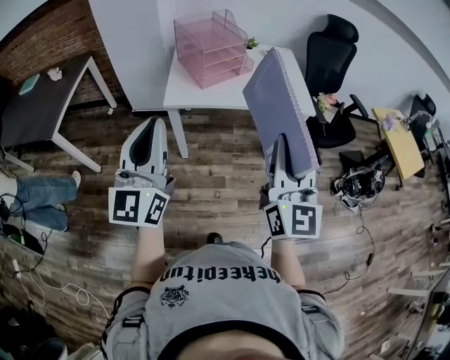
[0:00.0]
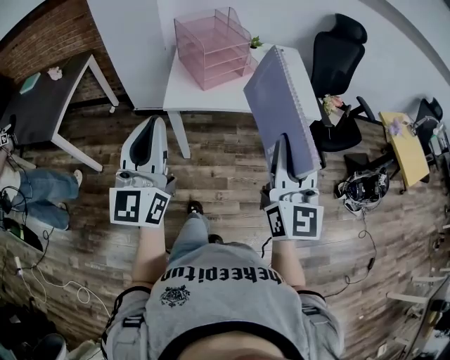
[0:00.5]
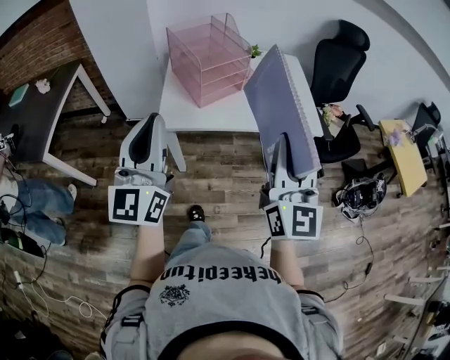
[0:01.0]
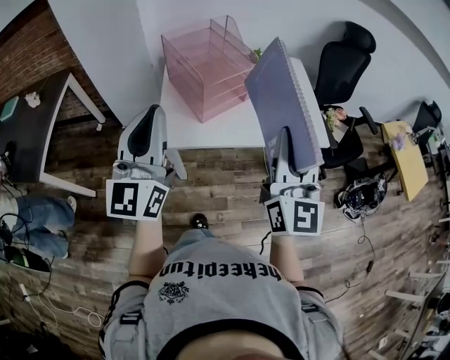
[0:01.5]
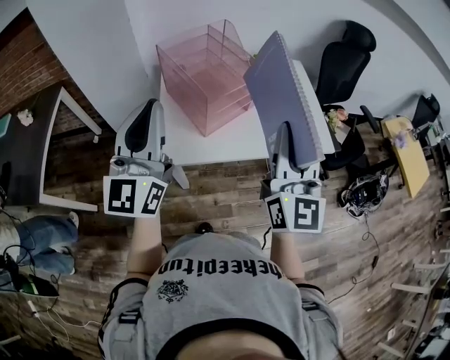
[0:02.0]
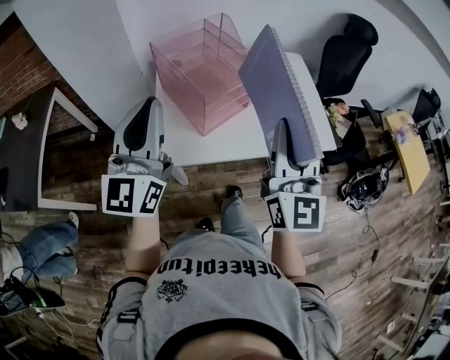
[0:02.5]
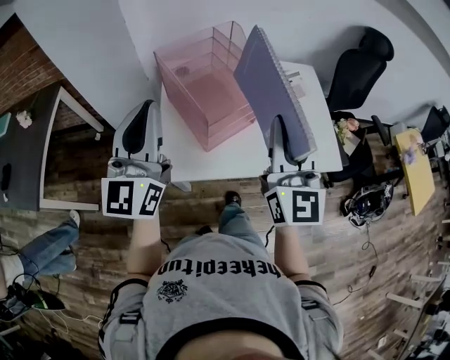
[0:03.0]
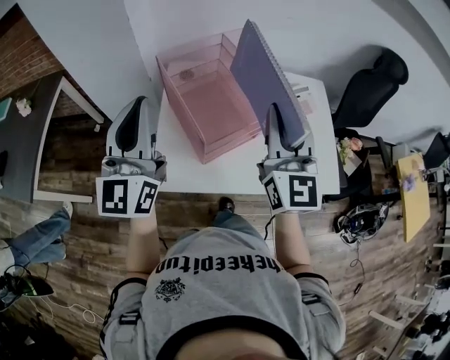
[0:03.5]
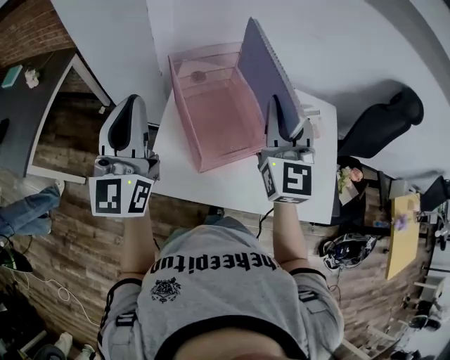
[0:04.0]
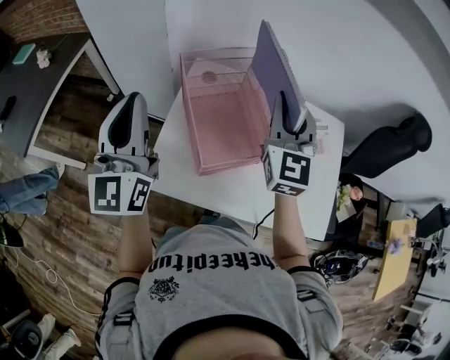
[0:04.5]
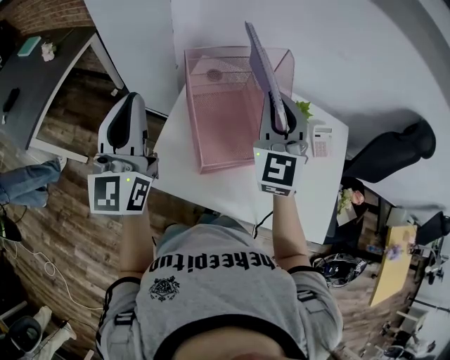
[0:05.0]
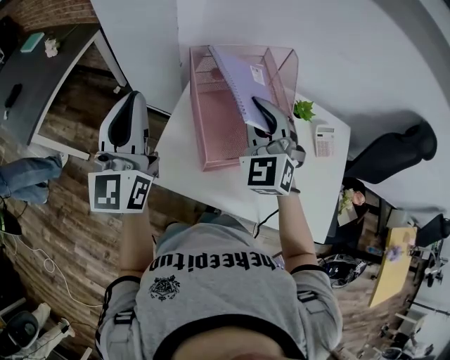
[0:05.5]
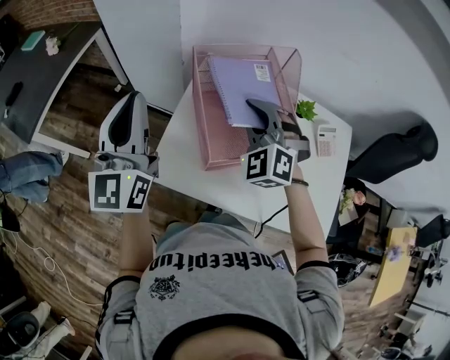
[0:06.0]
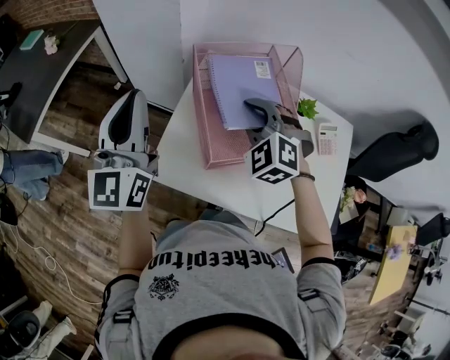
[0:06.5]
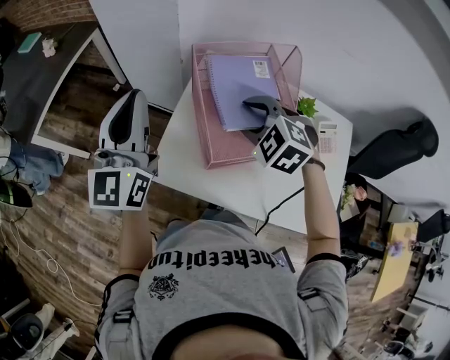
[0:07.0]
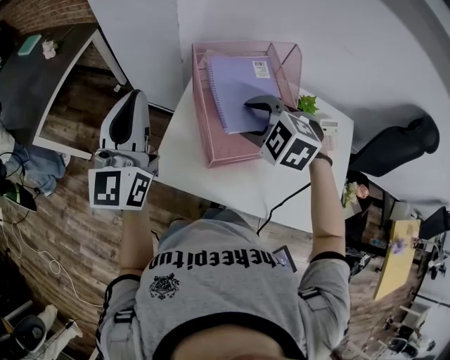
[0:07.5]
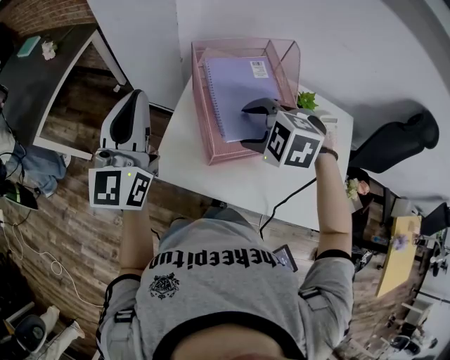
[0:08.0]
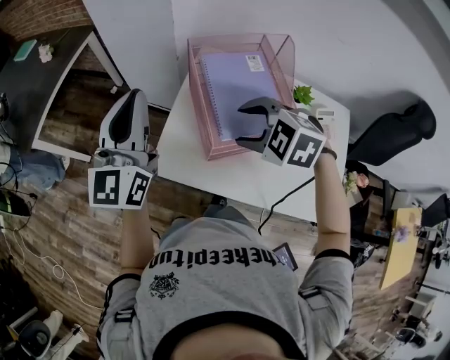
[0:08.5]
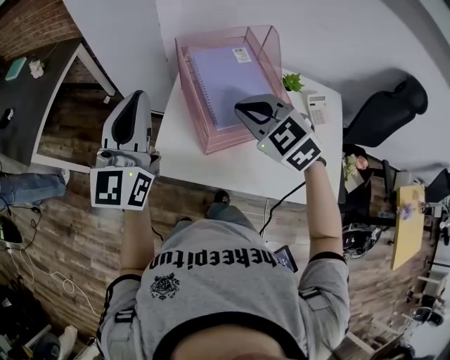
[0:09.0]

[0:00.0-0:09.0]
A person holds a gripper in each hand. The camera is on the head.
0:00.0 to 0:02.0: Both grippers move forward, approximately 35 cm.
0:02.0 to 0:04.5: The right gripper moves forward, approximately 35 cm, and turns by about 30 degrees; the left gripper travels forward by roughly 20 cm, and rotates about 30 degrees.
0:04.5 to 0:07.0: The right gripper travels downward and to the left by roughly 15 cm, tips its fingers downward by approximately 50 degrees, and opens its fingers.
0:07.0 to 0:09.0: The right gripper moves backward and upward, roughly 10 cm, swivels about 20 degrees, and closes up.

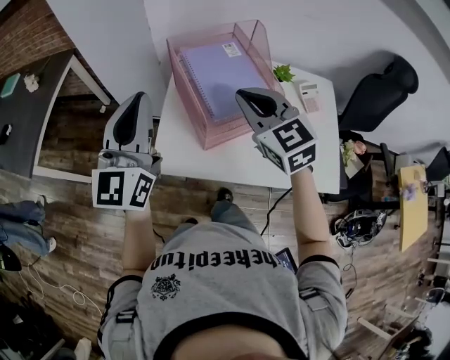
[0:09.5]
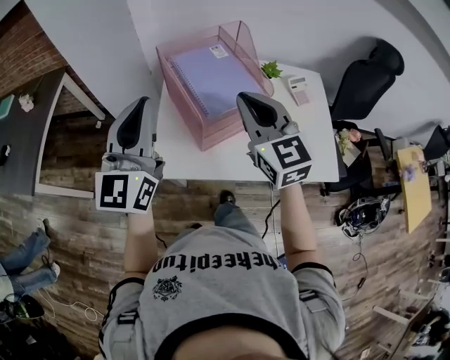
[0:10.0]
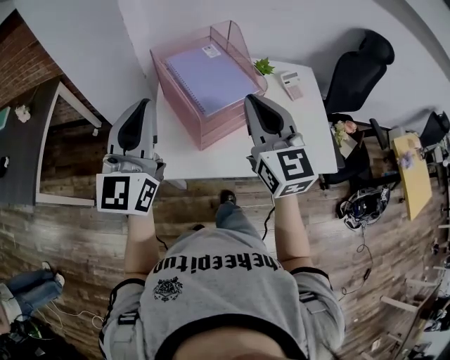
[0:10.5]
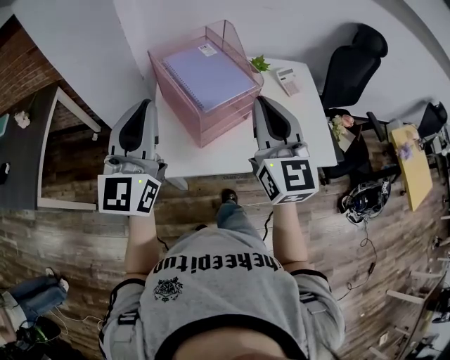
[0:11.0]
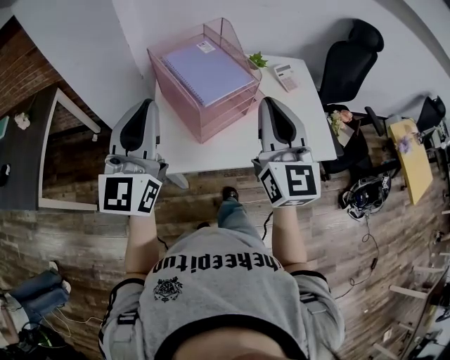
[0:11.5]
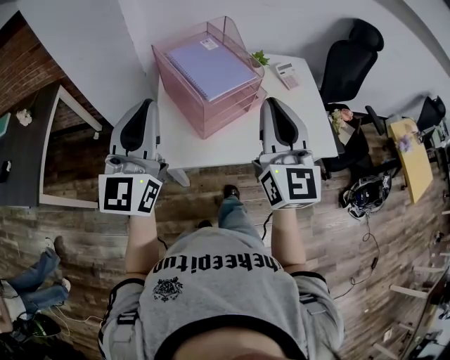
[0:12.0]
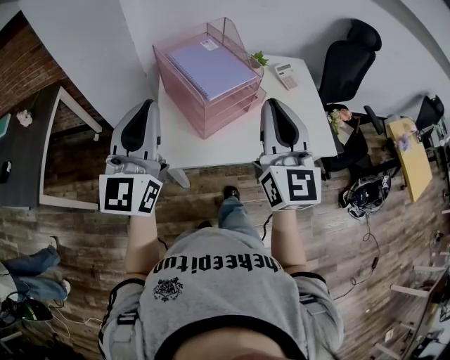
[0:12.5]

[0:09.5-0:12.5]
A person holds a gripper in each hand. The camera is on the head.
0:09.5 to 0:11.0: The left gripper moves approximately 5 cm. Meanwhile the right gripper is displaced backward, upward and to the right by roughly 15 cm, and changes its angle by about 40 degrees.
0:11.0 to 0:12.5: The left gripper changes place by approximately 5 cm. The right gripper shifts about 5 cm backward.

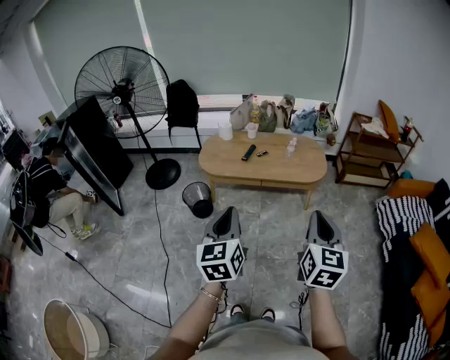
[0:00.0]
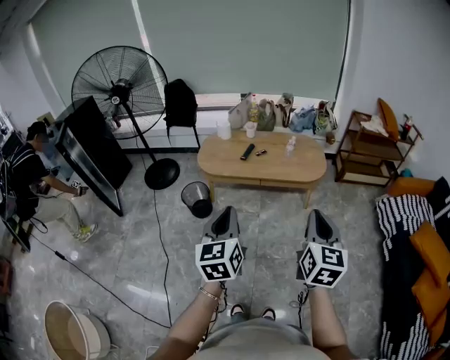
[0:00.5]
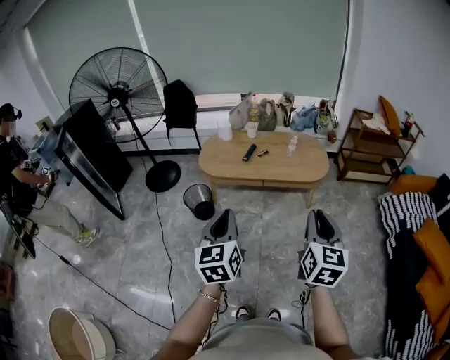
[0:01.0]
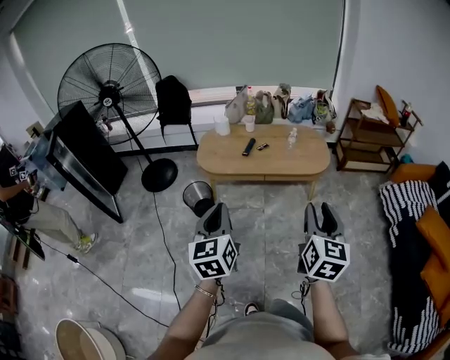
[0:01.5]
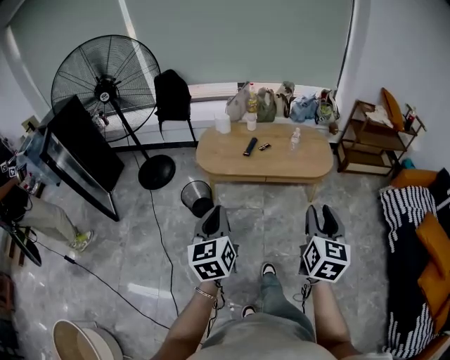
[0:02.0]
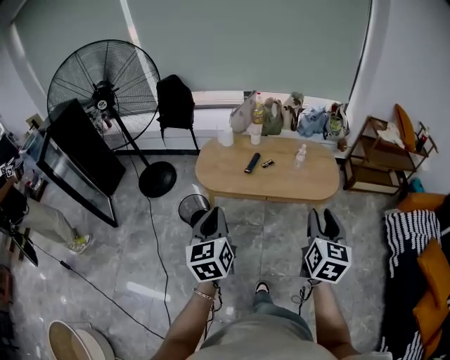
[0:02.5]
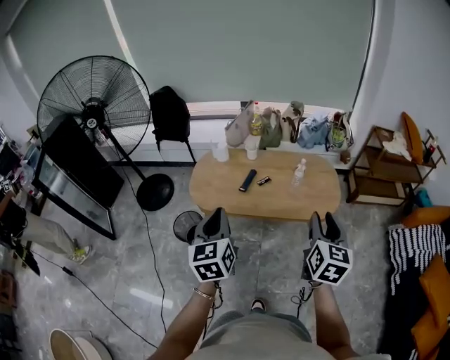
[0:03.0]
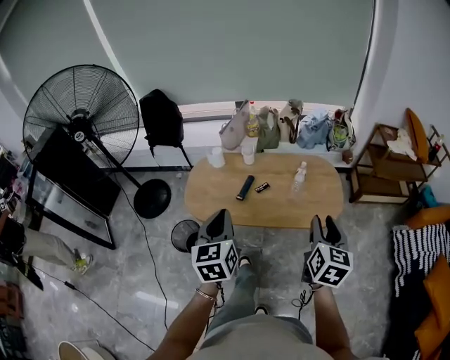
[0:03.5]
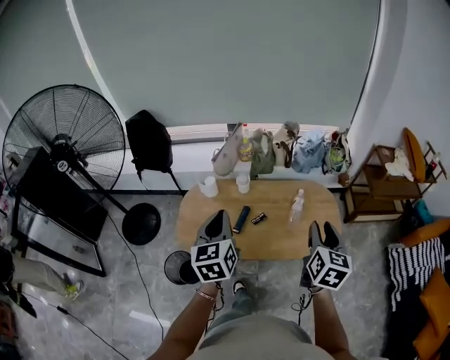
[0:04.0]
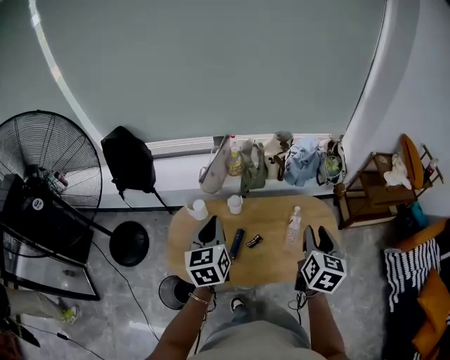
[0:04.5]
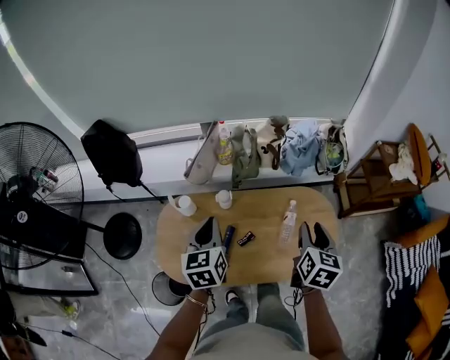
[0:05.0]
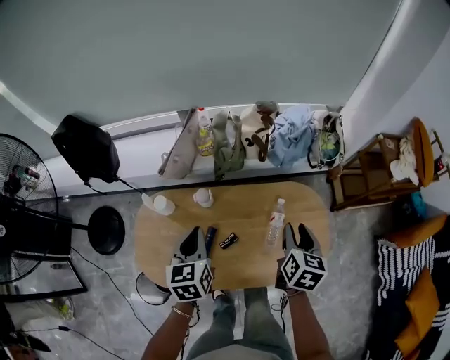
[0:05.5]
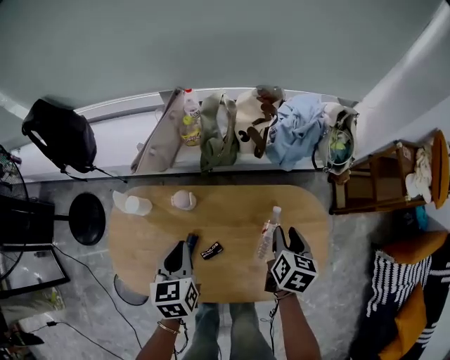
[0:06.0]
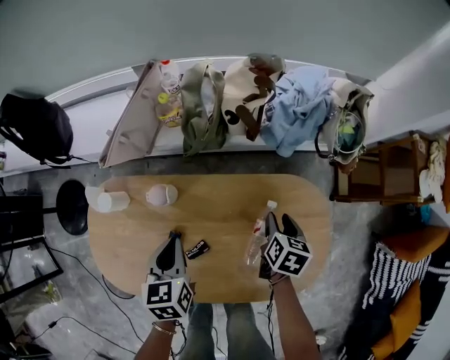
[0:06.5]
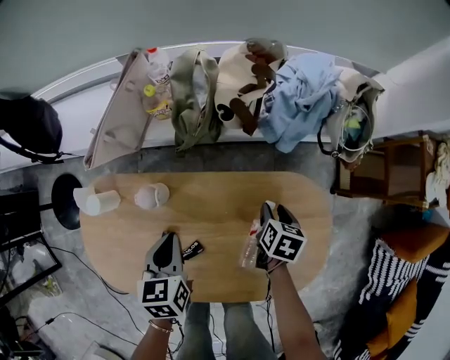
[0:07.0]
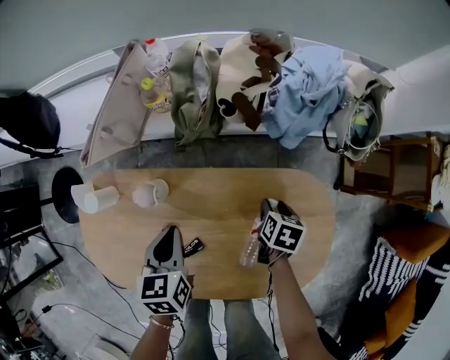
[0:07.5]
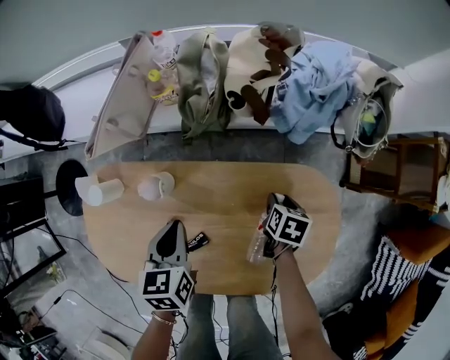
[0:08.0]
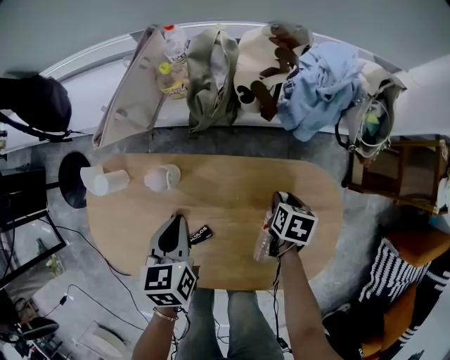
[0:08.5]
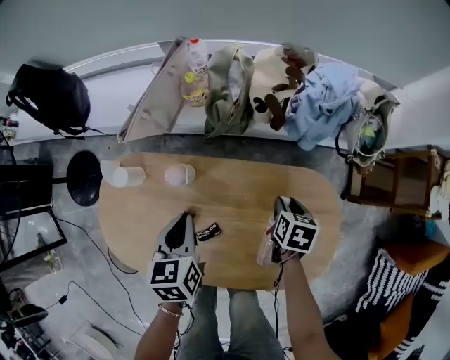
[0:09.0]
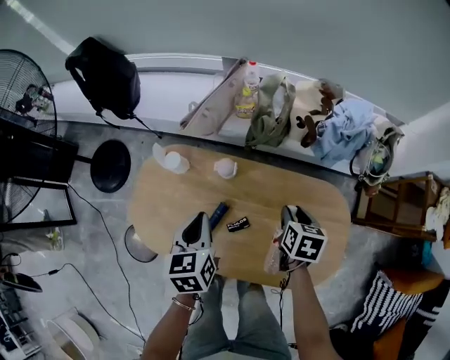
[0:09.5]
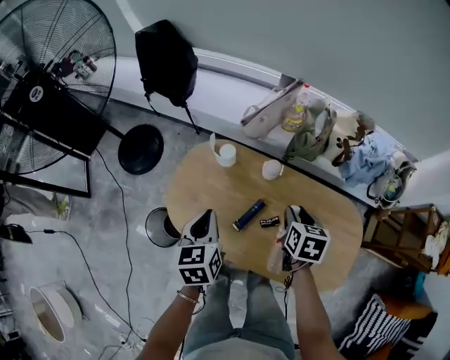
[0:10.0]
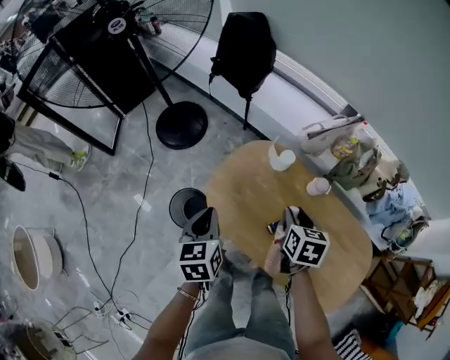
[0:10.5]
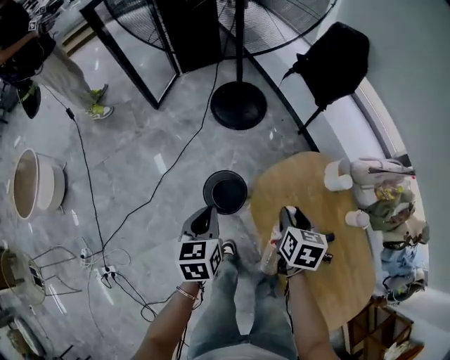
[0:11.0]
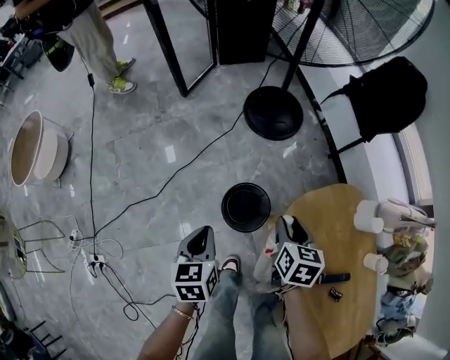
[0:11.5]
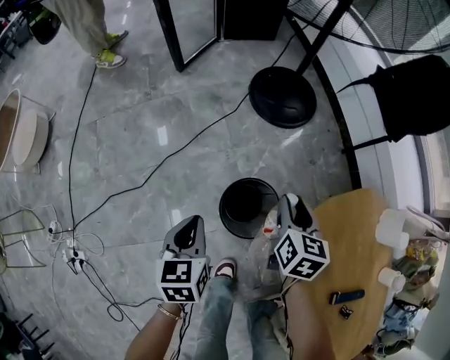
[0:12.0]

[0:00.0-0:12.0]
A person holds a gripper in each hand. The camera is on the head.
0:00.0 to 0:02.0: The left gripper heads to the left and forward, covering approximately 15 cm; the right gripper travels forward and to the left by roughly 10 cm, and opens.
0:02.0 to 0:04.0: The pair of grippers is taken forward, approximately 50 cm.
0:04.0 to 0:06.0: Both grippers travel together forward and downward, about 40 cm. The right gripper turns by about 30 degrees; the left gripper swivels about 30 degrees.
0:06.0 to 0:08.0: The left gripper goes some 10 cm downward and forward, while the right gripper travels downward by about 20 cm, and changes its angle by roughly 20 degrees.
0:08.0 to 0:10.0: The left gripper is displaced to the left, upward and backward by approximately 30 cm, and rotates roughly 20 degrees, while the right gripper is displaced to the left and upward by about 35 cm, and rotates roughly 30 degrees.
0:10.0 to 0:12.0: The pair of grippers is taken some 50 cm. The right gripper rotates some 50 degrees, while the left gripper turns by about 50 degrees.

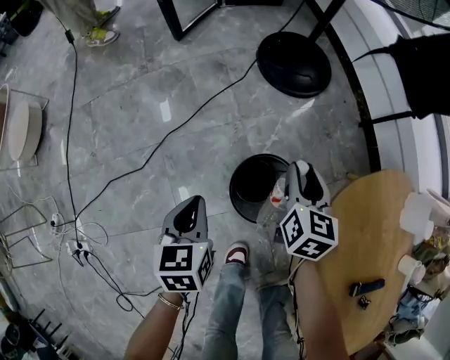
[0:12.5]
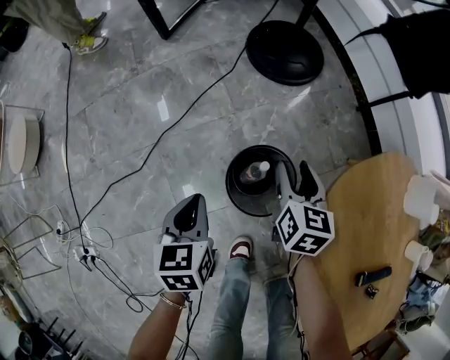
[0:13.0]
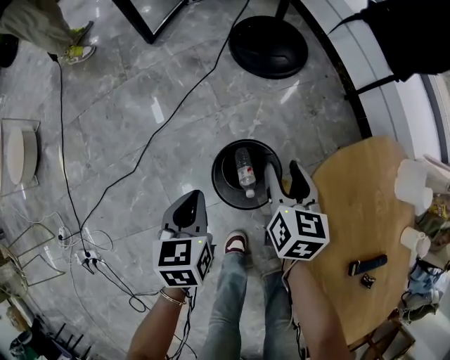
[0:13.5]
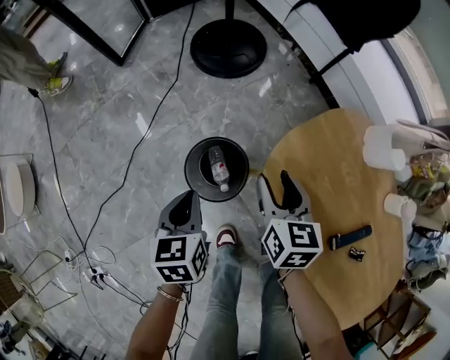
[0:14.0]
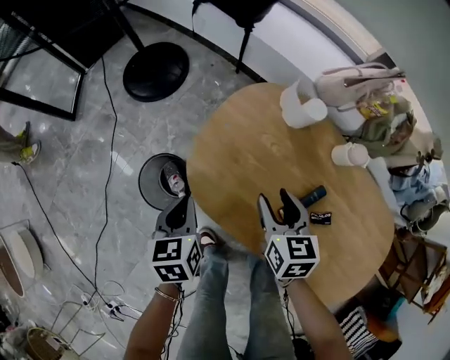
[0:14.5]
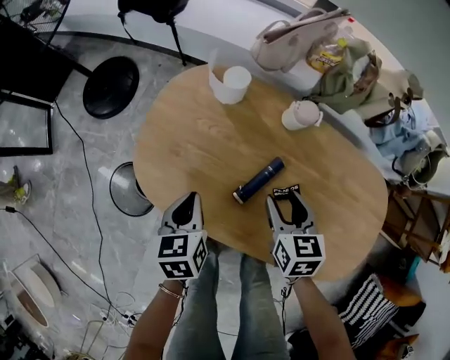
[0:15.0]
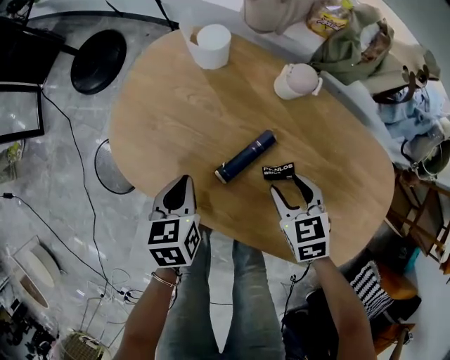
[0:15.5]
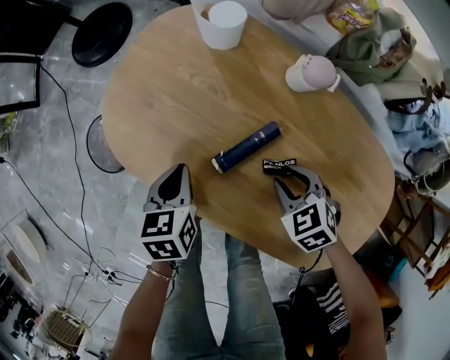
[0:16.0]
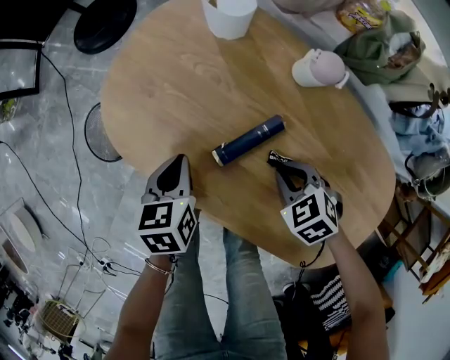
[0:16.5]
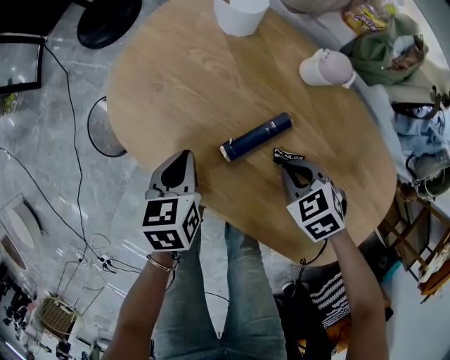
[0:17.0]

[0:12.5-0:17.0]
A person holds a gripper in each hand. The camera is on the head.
0:12.5 to 0:14.5: The right gripper moves some 40 cm, and turns by roughly 20 degrees. Meanwhile the left gripper shifts by approximately 30 cm, and changes its angle by some 30 degrees.
0:14.5 to 0:17.0: The left gripper ends up about 20 cm from where it was. Meanwhile the right gripper shifts by about 25 cm, changes its angle by some 50 degrees, and closes.
